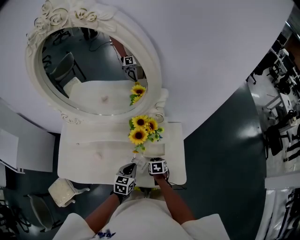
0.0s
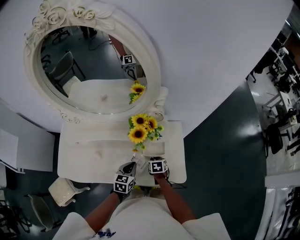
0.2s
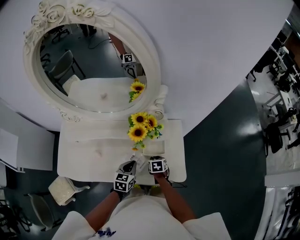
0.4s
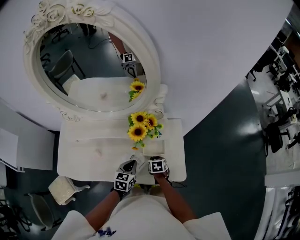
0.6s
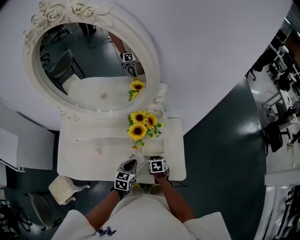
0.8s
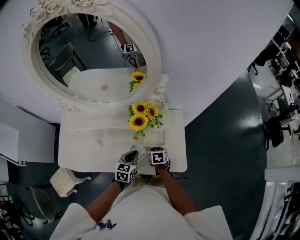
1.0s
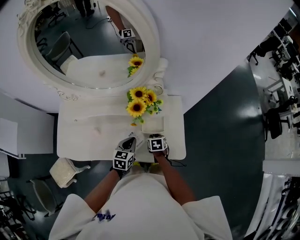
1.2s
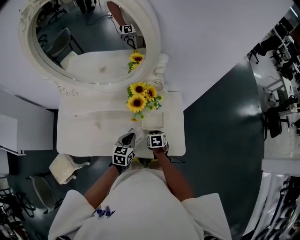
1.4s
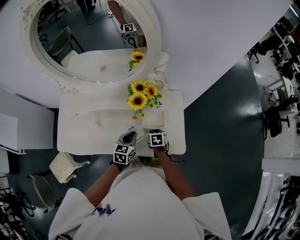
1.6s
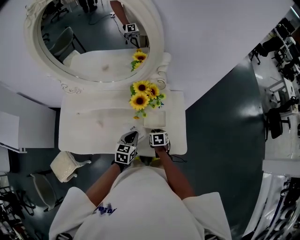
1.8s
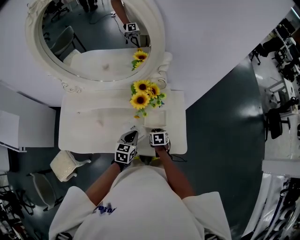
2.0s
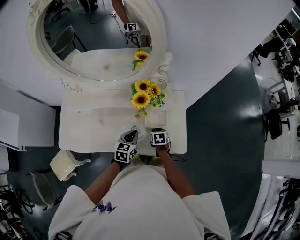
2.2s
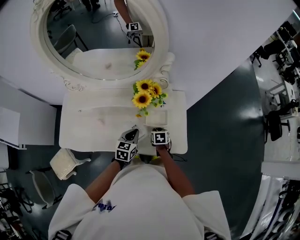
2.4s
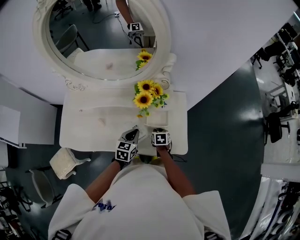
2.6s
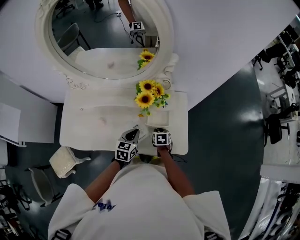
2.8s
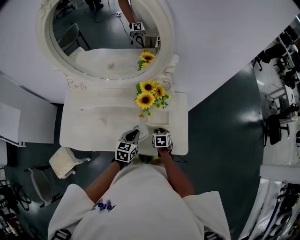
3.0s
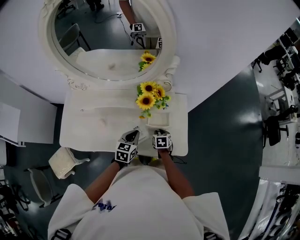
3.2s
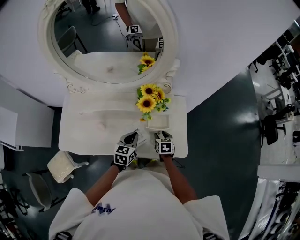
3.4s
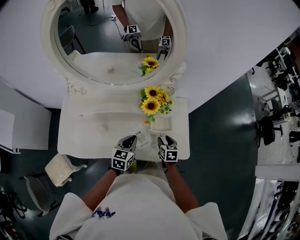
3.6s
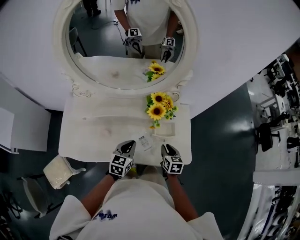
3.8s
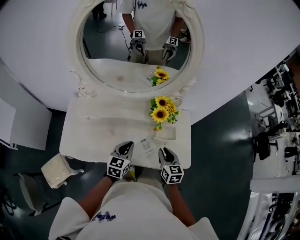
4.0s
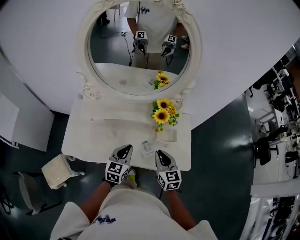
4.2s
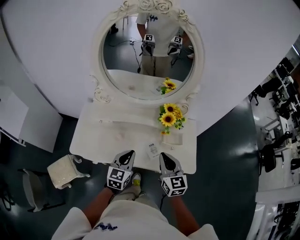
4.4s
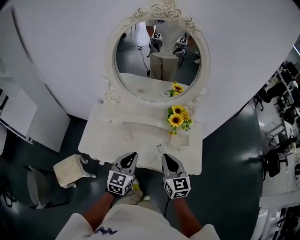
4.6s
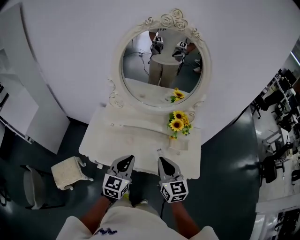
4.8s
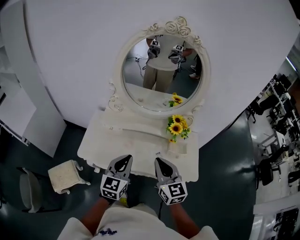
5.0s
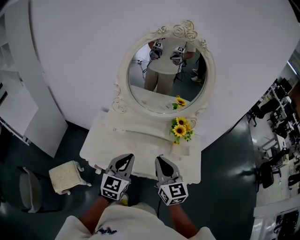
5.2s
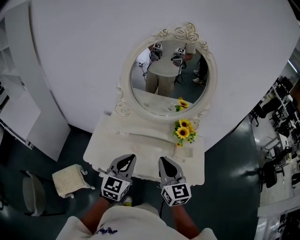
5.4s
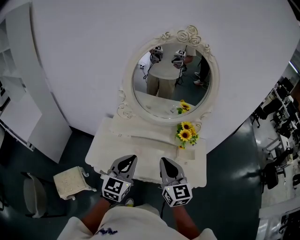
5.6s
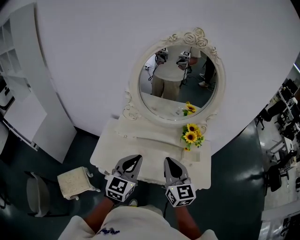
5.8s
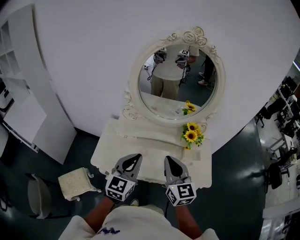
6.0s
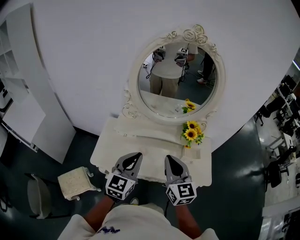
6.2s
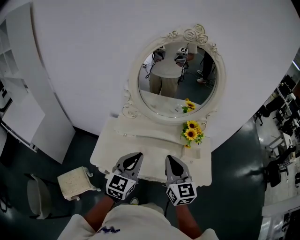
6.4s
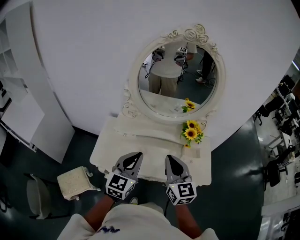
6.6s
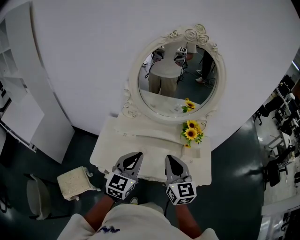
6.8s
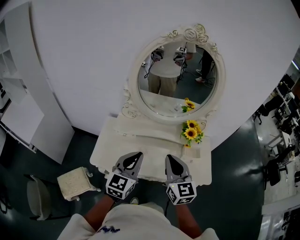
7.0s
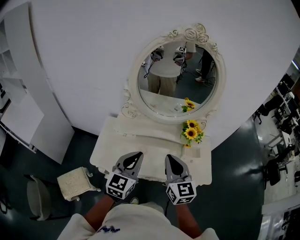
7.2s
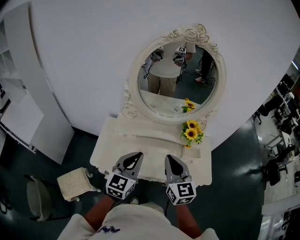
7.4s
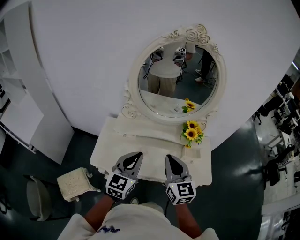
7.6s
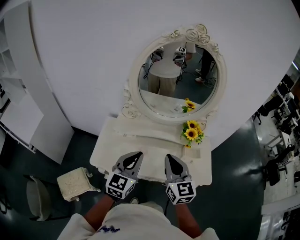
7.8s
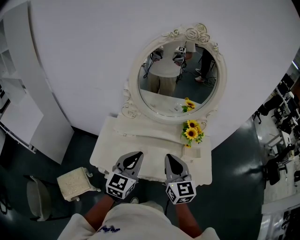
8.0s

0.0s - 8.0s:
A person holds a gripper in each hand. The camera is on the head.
0.0s - 3.2s: The grippers make only small movements.
3.2s - 4.8s: The two grippers go approximately 40 cm upward, to the left and backward. The right gripper tilts its fingers roughly 50 degrees upward. The left gripper rotates about 30 degrees.
4.8s - 6.4s: Both grippers travel together to the left and upward, approximately 10 cm.
6.4s - 8.0s: The two grippers keep their place.

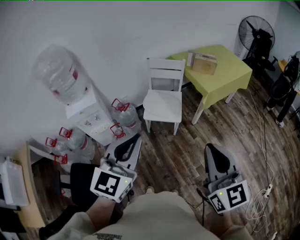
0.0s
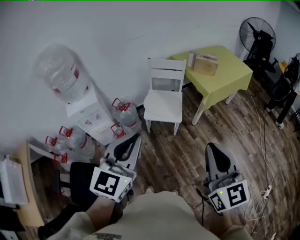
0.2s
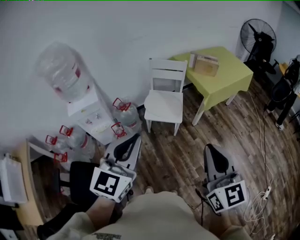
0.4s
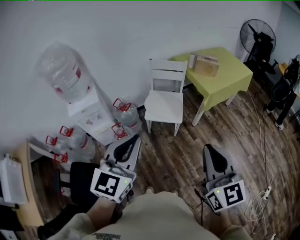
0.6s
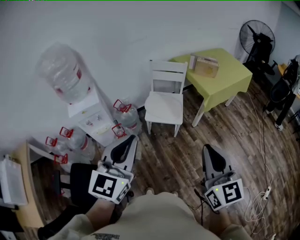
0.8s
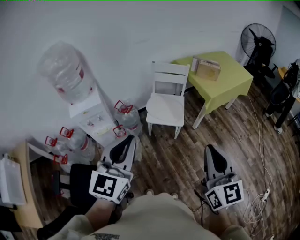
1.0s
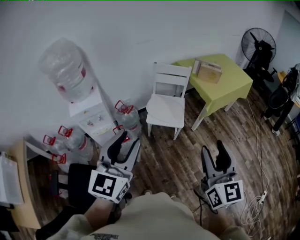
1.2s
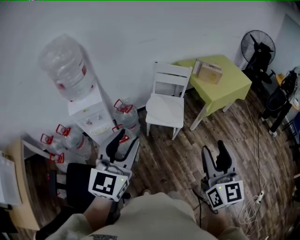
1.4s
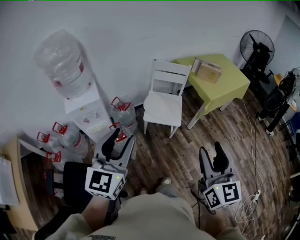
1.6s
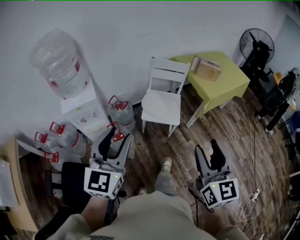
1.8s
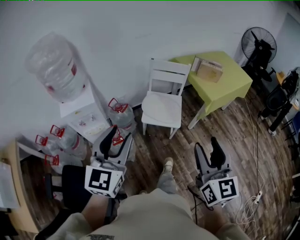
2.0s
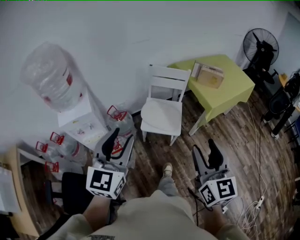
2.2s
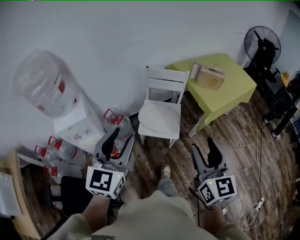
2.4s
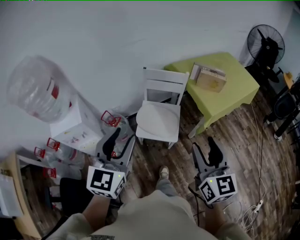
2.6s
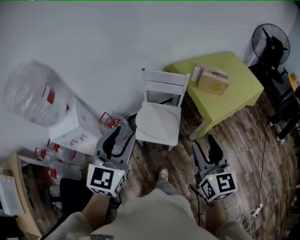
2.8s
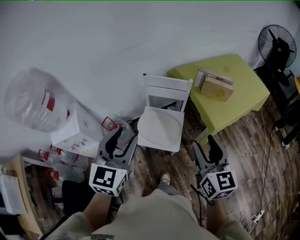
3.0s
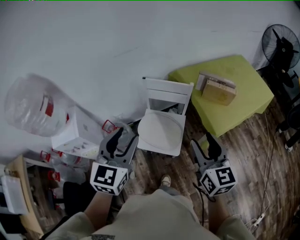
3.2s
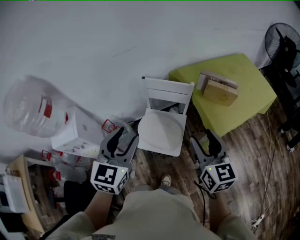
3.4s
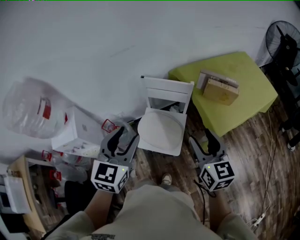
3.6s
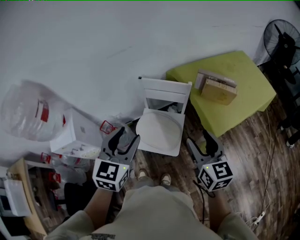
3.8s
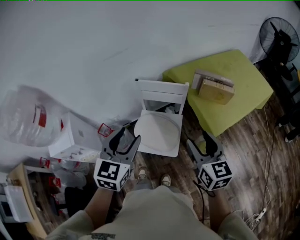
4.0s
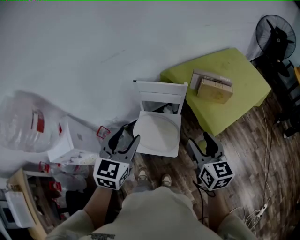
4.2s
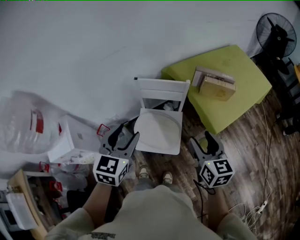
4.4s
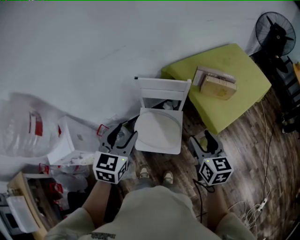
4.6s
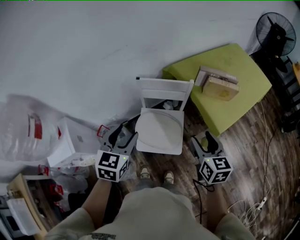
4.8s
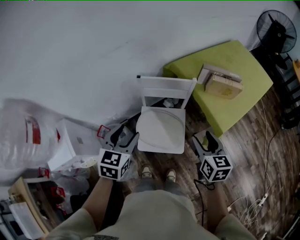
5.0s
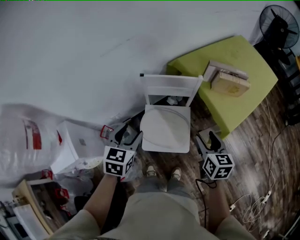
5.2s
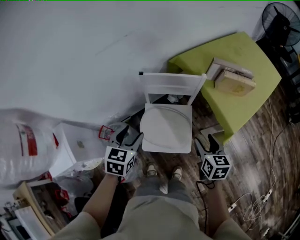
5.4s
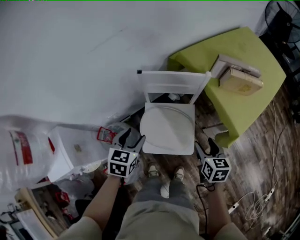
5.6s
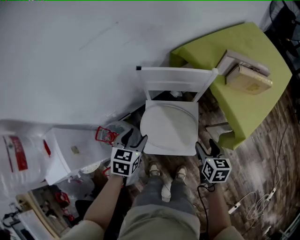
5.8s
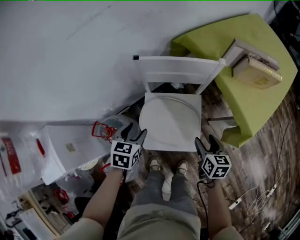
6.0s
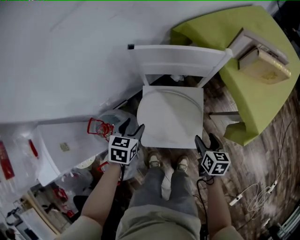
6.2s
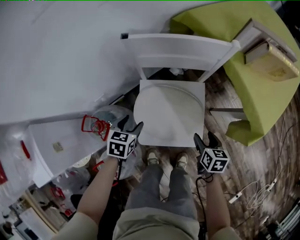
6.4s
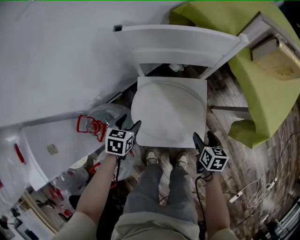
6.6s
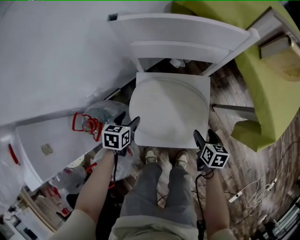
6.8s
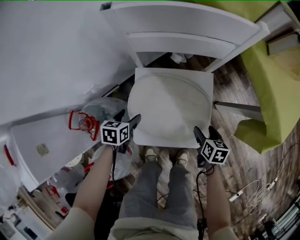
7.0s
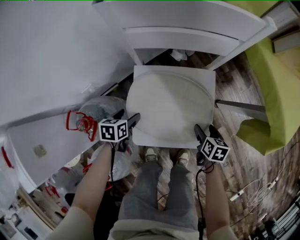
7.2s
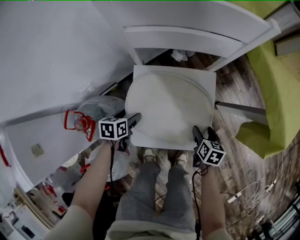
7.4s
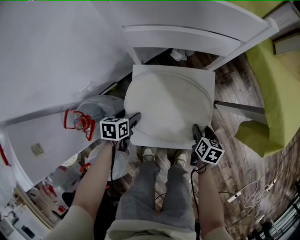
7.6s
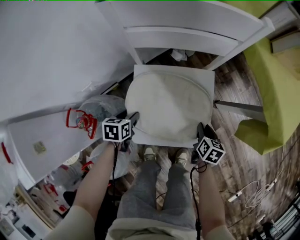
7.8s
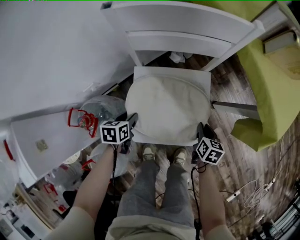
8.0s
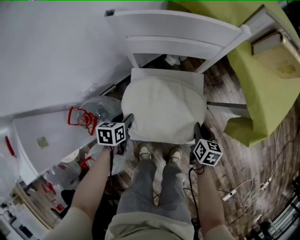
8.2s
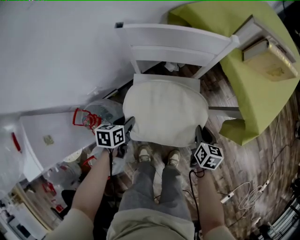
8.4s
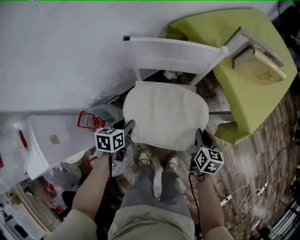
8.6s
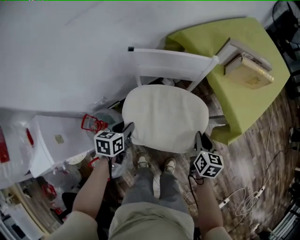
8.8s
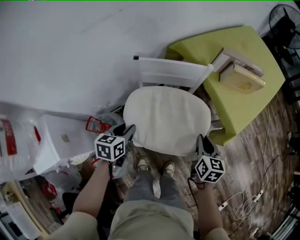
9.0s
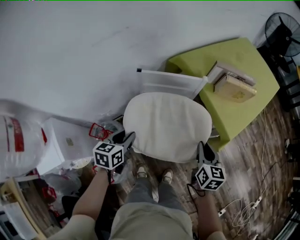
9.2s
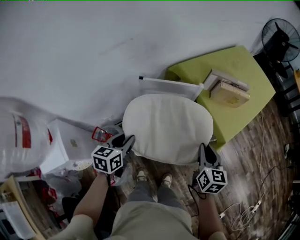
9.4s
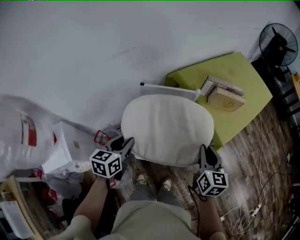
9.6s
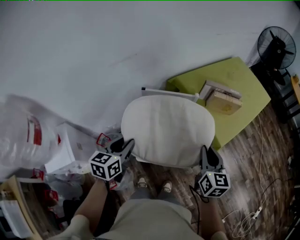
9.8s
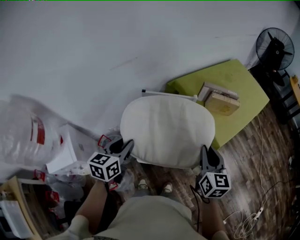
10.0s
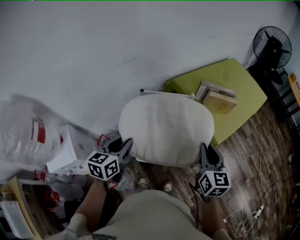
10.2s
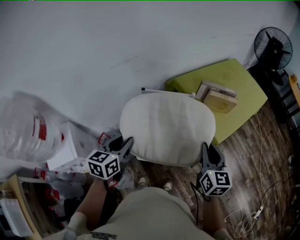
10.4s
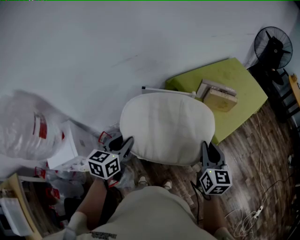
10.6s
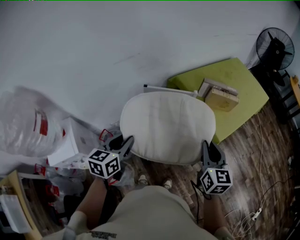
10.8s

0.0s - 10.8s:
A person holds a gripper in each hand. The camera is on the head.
0.0s - 1.6s: The left gripper moves to the left, approximately 15 cm, and opens its fingers. The right gripper heads to the left, covering about 10 cm, and opens.
1.6s - 3.0s: The left gripper goes roughly 40 cm forward and to the right. Meanwhile the right gripper goes some 40 cm forward.
3.0s - 4.6s: Both grippers travel together forward and downward, some 15 cm.
4.6s - 6.2s: The two grippers go approximately 40 cm downward. The right gripper changes its angle by approximately 30 degrees, while the left gripper rotates about 30 degrees.
6.2s - 7.8s: Both grippers move downward, about 25 cm. The left gripper changes its angle by about 20 degrees; the right gripper closes.
7.8s - 9.2s: Both grippers travel together upward, about 40 cm. The left gripper turns by roughly 20 degrees; the right gripper rotates some 30 degrees.
9.2s - 10.8s: Both grippers move upward, approximately 20 cm.

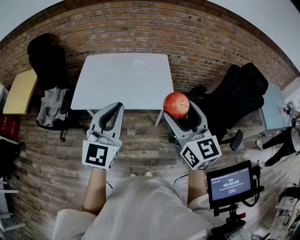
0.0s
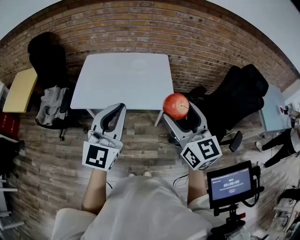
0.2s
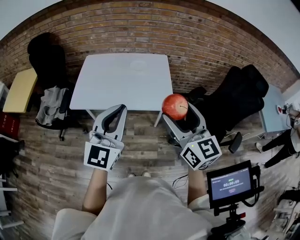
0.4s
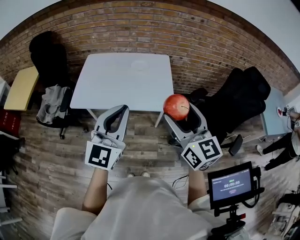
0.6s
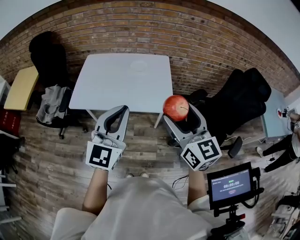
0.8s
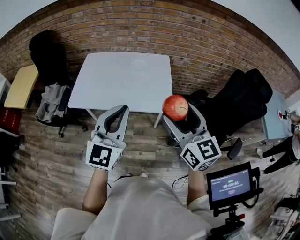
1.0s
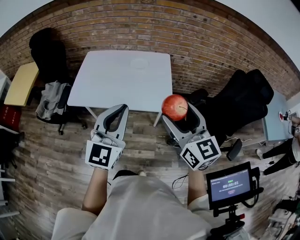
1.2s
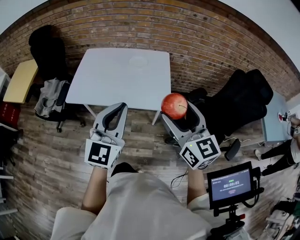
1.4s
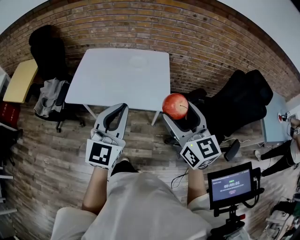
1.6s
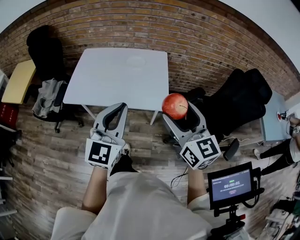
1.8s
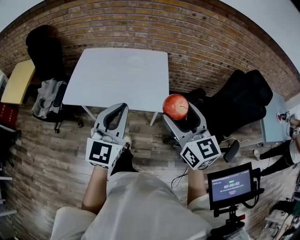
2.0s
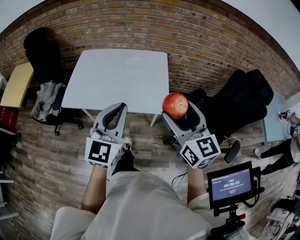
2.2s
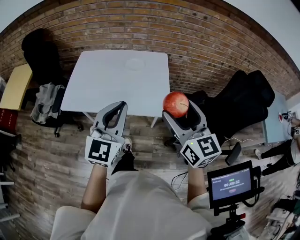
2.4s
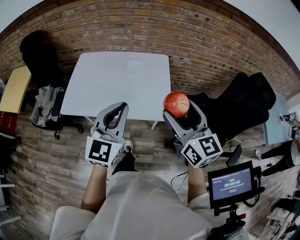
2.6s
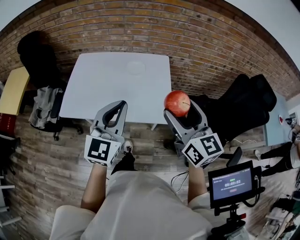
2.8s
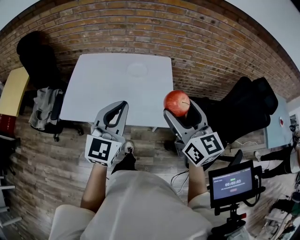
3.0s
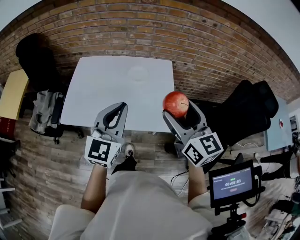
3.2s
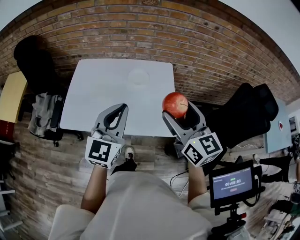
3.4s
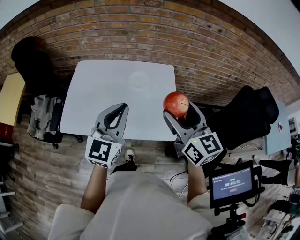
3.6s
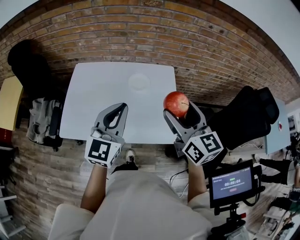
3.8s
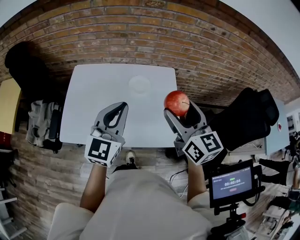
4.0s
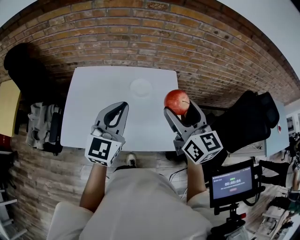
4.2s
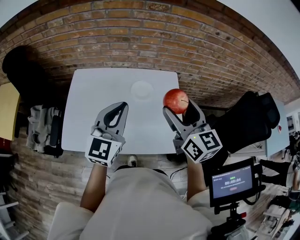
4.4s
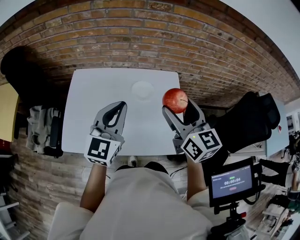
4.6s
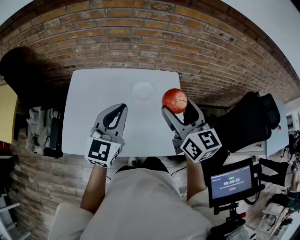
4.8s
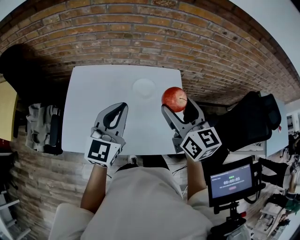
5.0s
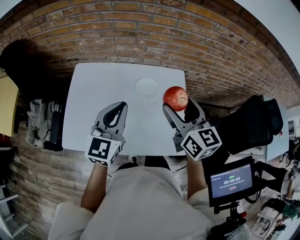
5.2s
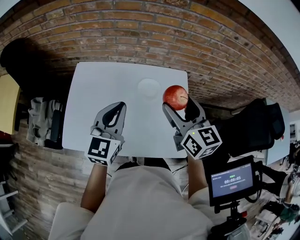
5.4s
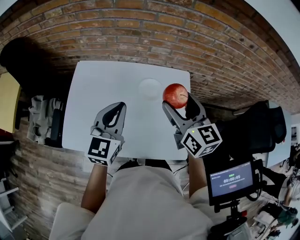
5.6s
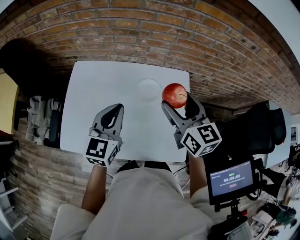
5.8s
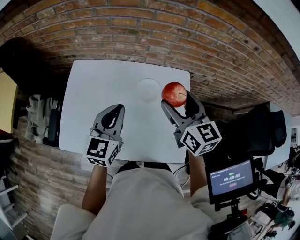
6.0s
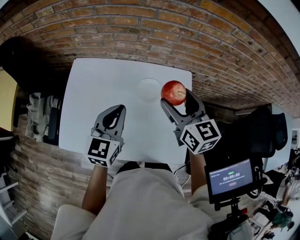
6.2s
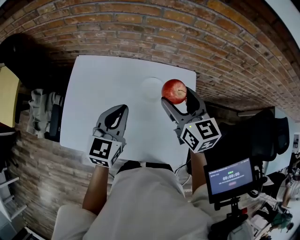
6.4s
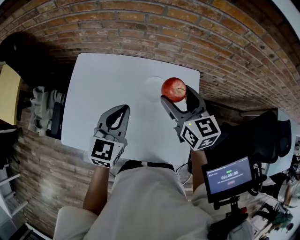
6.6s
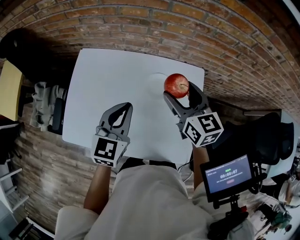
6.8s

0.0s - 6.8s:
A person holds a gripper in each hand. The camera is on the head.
0.0s - 1.4s: The left gripper shifts approximately 5 cm to the right, while the right gripper changes place by approximately 5 cm.
1.4s - 2.8s: Both grippers move forward, about 10 cm.
2.8s - 4.0s: Both grippers move forward, some 15 cm.
4.0s - 5.4s: Both grippers travel together forward and to the left, about 10 cm.
5.4s - 6.8s: The right gripper heads forward and downward, covering some 15 cm. The left gripper is displaced downward and forward by about 10 cm.
